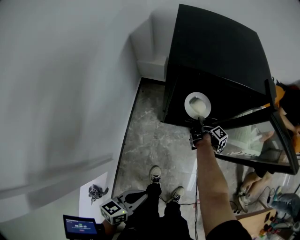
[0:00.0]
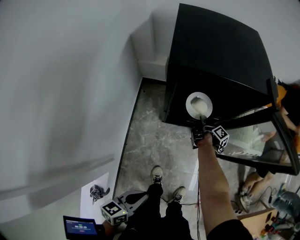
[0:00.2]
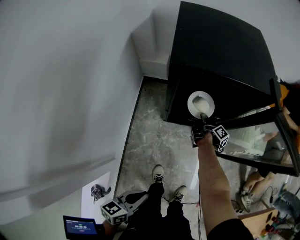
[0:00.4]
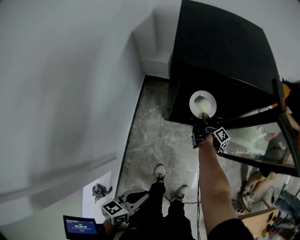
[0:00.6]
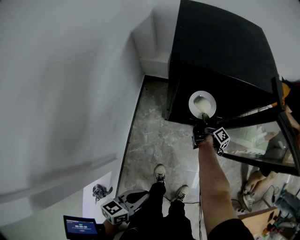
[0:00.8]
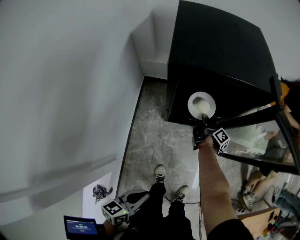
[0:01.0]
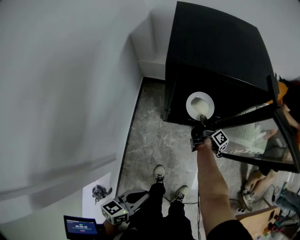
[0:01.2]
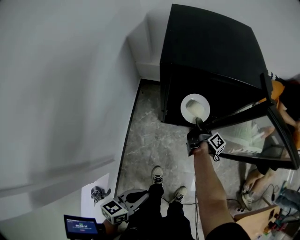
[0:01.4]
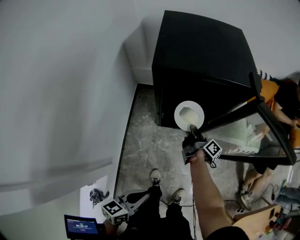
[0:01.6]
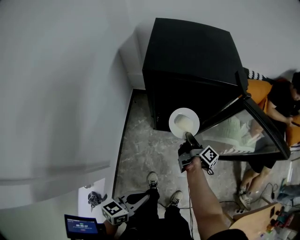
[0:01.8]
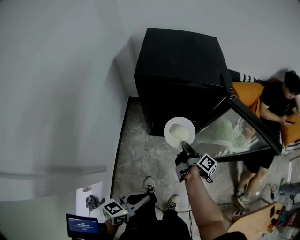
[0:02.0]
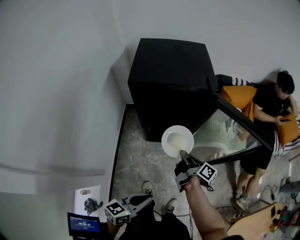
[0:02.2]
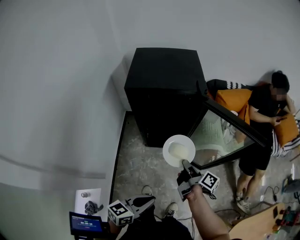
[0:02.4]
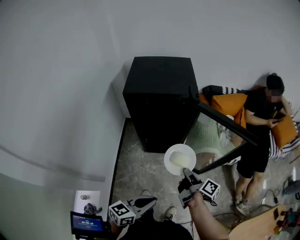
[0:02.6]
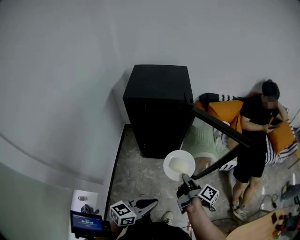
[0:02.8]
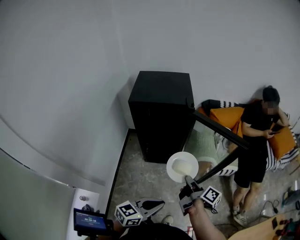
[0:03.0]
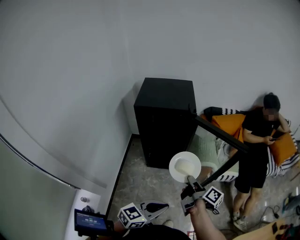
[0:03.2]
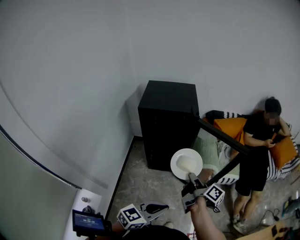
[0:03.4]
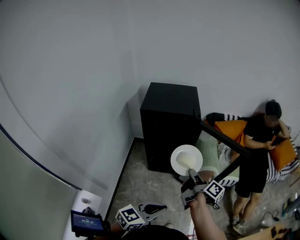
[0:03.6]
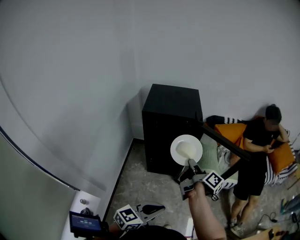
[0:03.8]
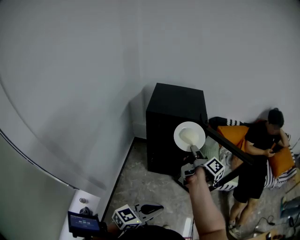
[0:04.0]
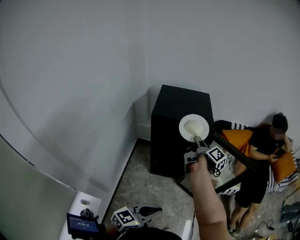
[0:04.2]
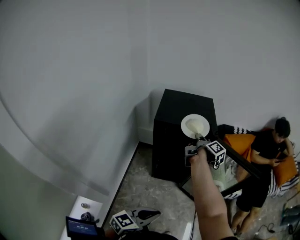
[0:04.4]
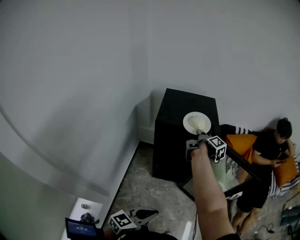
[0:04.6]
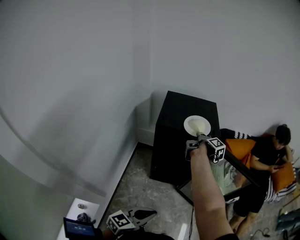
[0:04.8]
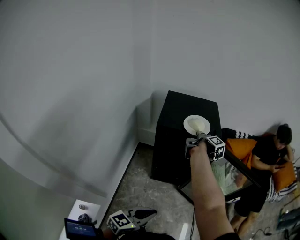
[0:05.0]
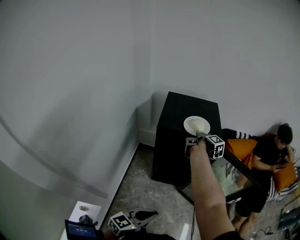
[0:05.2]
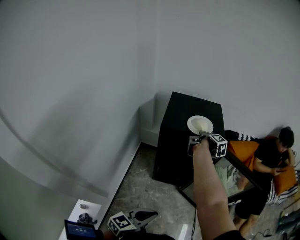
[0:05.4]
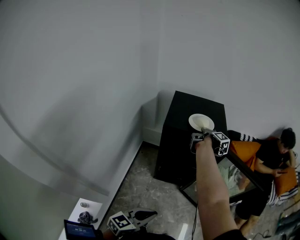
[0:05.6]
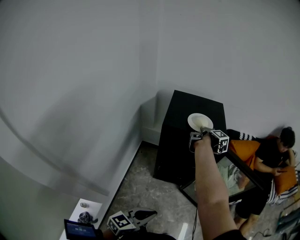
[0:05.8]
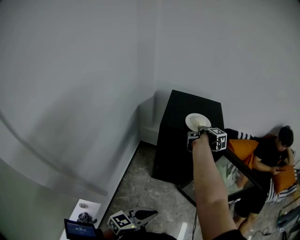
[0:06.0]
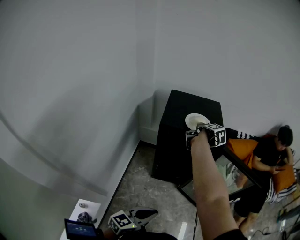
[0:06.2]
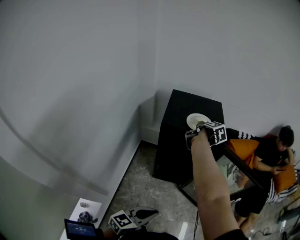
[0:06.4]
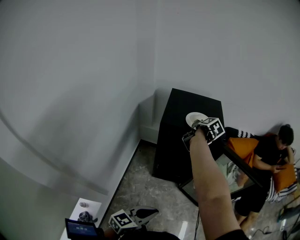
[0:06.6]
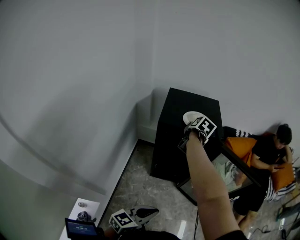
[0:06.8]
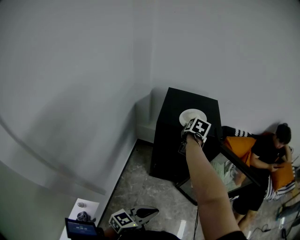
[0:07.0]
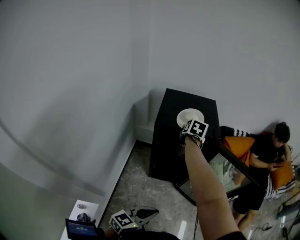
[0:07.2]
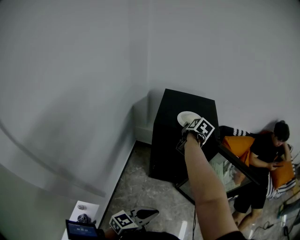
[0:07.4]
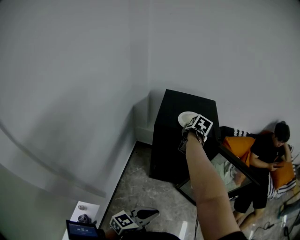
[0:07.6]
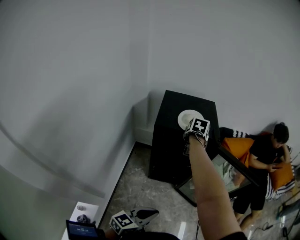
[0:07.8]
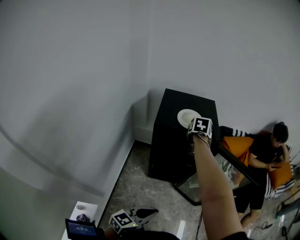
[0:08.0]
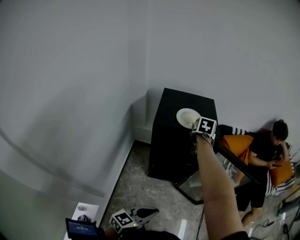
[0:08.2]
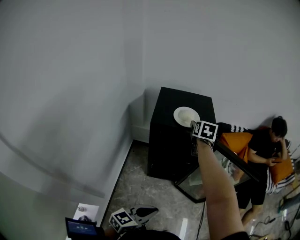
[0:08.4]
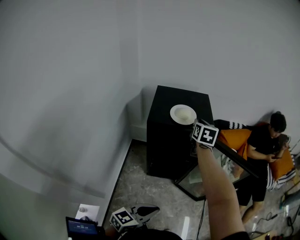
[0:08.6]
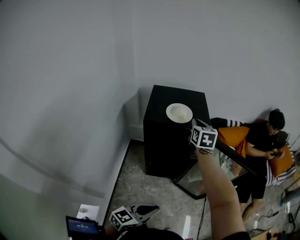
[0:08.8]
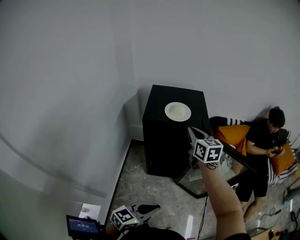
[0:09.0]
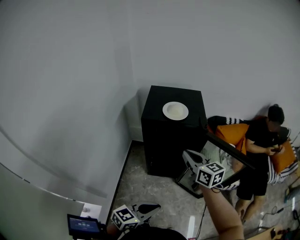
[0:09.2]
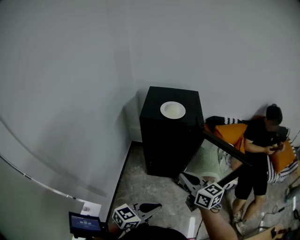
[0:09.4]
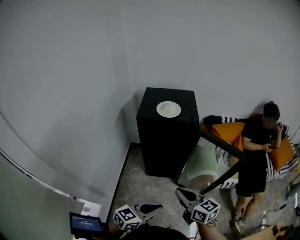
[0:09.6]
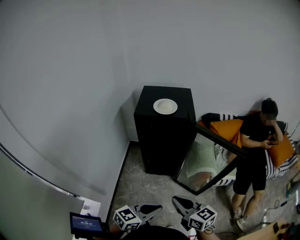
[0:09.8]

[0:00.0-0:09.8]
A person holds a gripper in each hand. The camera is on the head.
0:00.0 to 0:01.4: The grippers move only a little.
0:01.4 to 0:02.8: The left gripper shifts some 25 cm to the right and upward, and rotates about 20 degrees. The right gripper goes roughly 40 cm backward, to the right and upward.
0:02.8 to 0:04.2: The left gripper moves to the left, roughly 5 cm, while the right gripper shifts roughly 30 cm forward, upward and to the left.
0:04.2 to 0:05.6: The right gripper moves forward and to the left, about 15 cm; the left gripper heads to the left, covering about 10 cm.
0:05.6 to 0:07.0: The right gripper rotates around the line of its fingers by some 70 degrees, counterclockwise from behind, and opens its fingers.
0:07.0 to 0:08.4: The right gripper is displaced to the right by roughly 5 cm.
0:08.4 to 0:09.8: The right gripper heads backward, covering approximately 50 cm, rotates about 50 degrees, and closes its fingers, while the left gripper travels to the right by about 10 cm.

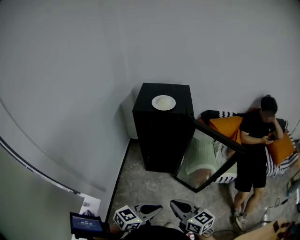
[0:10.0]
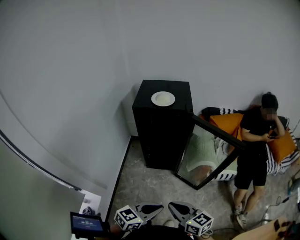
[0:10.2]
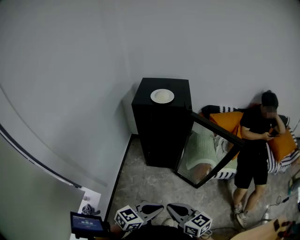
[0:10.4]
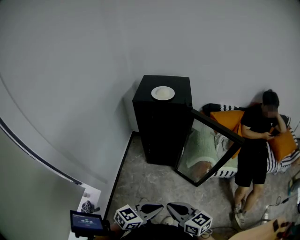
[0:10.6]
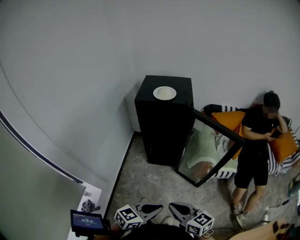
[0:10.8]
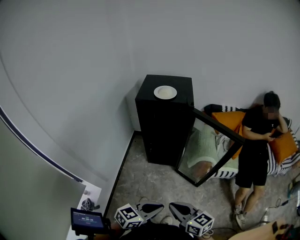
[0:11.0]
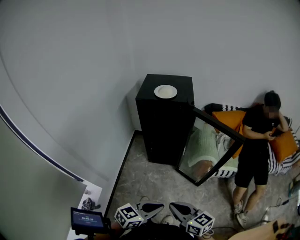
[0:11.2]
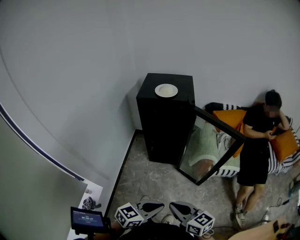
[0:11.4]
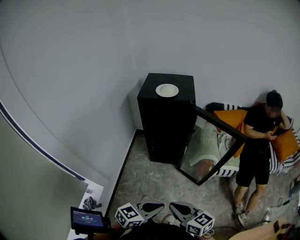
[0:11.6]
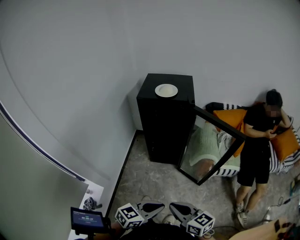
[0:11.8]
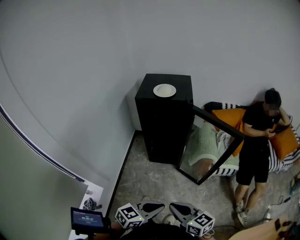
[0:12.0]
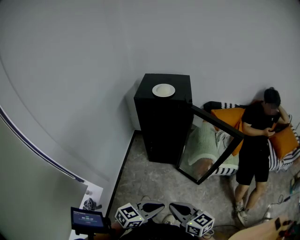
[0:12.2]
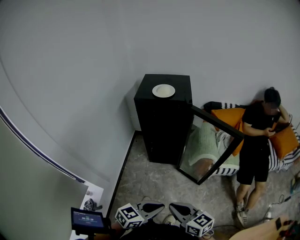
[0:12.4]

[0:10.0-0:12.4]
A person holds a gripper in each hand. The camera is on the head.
0:10.0 to 0:11.2: Both grippers travel together backward, about 5 cm.
0:11.2 to 0:12.4: Both grippers stay about where they are.

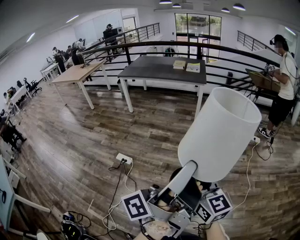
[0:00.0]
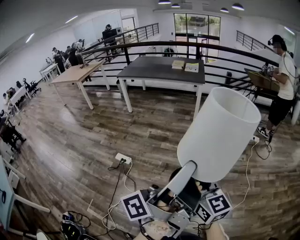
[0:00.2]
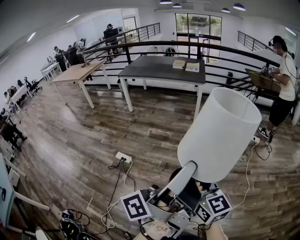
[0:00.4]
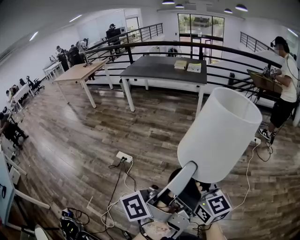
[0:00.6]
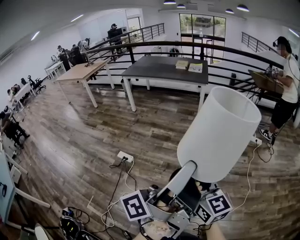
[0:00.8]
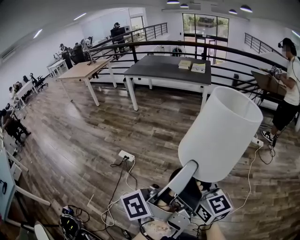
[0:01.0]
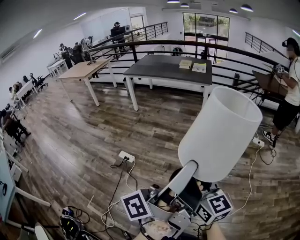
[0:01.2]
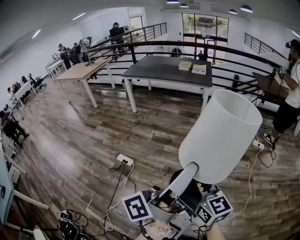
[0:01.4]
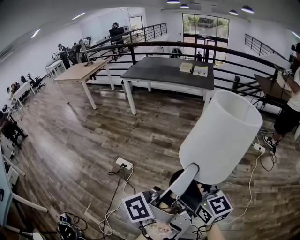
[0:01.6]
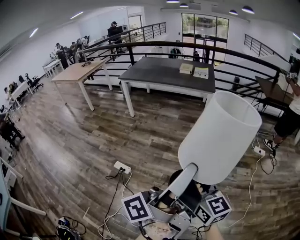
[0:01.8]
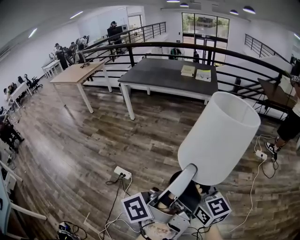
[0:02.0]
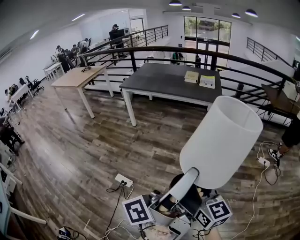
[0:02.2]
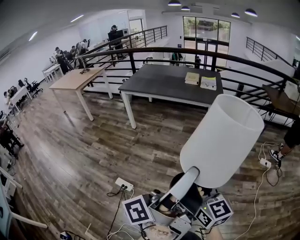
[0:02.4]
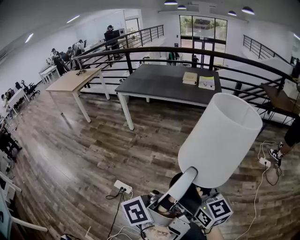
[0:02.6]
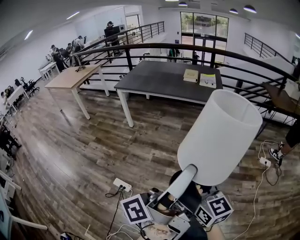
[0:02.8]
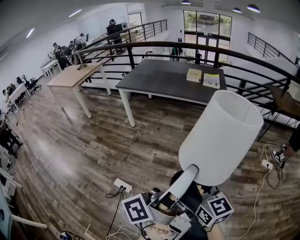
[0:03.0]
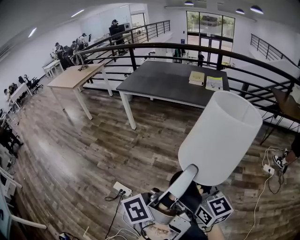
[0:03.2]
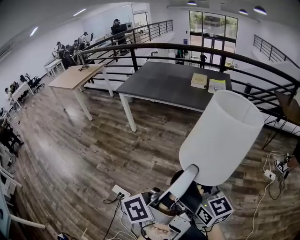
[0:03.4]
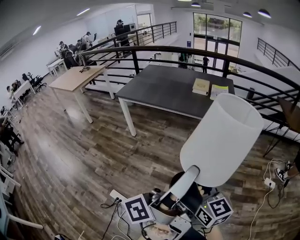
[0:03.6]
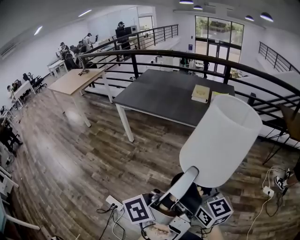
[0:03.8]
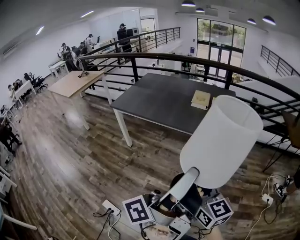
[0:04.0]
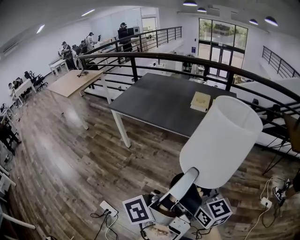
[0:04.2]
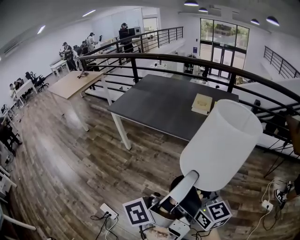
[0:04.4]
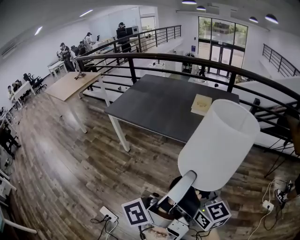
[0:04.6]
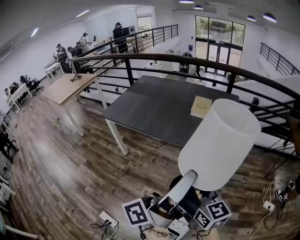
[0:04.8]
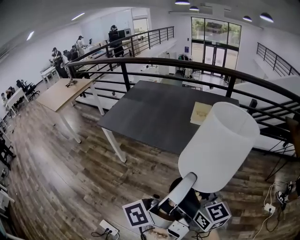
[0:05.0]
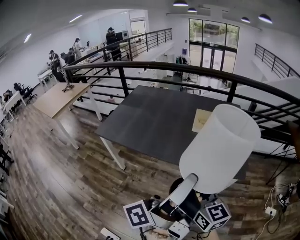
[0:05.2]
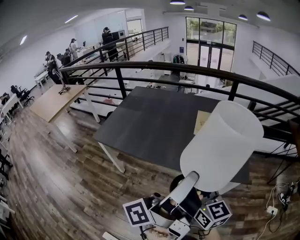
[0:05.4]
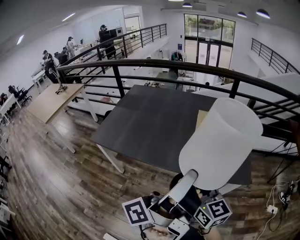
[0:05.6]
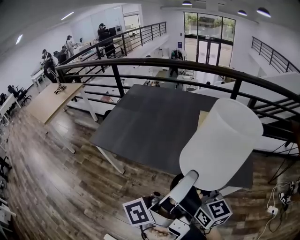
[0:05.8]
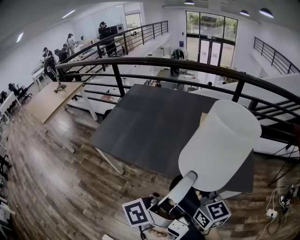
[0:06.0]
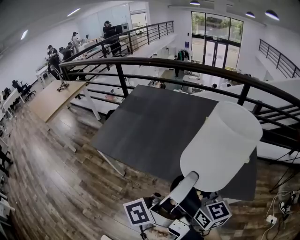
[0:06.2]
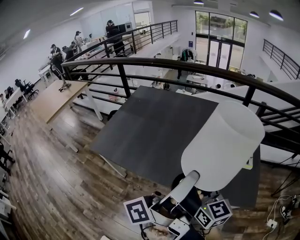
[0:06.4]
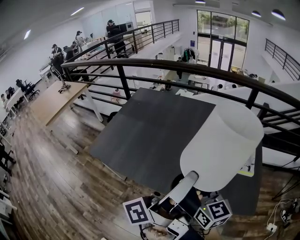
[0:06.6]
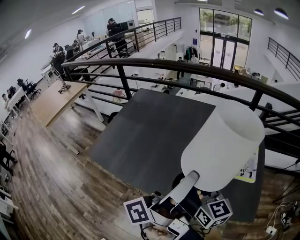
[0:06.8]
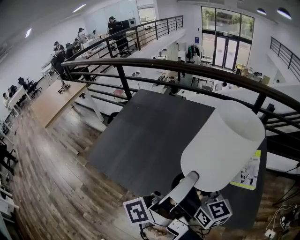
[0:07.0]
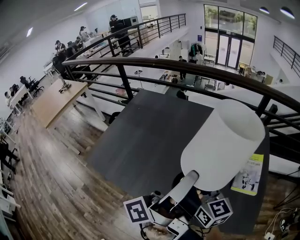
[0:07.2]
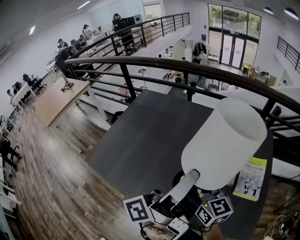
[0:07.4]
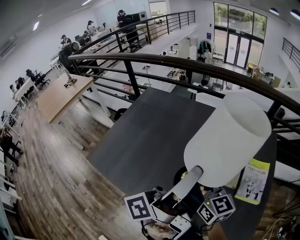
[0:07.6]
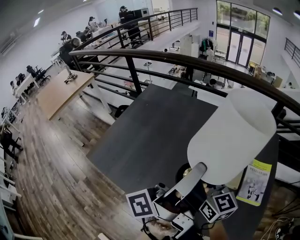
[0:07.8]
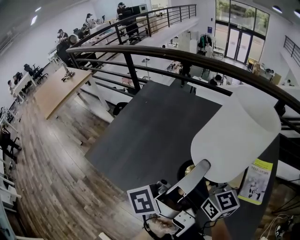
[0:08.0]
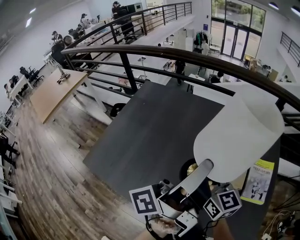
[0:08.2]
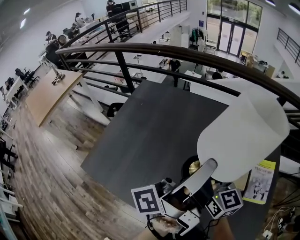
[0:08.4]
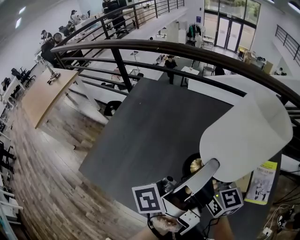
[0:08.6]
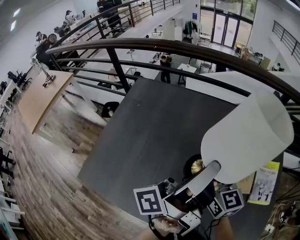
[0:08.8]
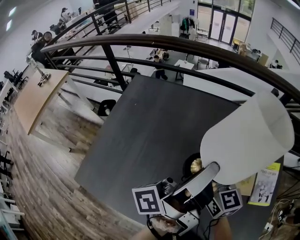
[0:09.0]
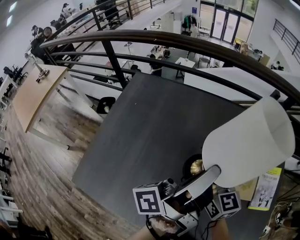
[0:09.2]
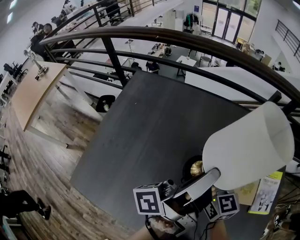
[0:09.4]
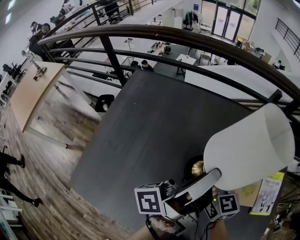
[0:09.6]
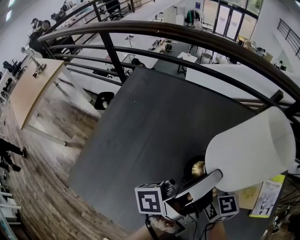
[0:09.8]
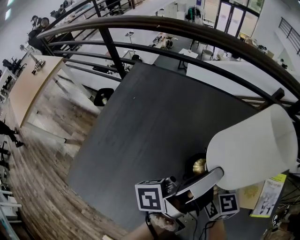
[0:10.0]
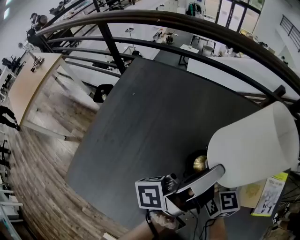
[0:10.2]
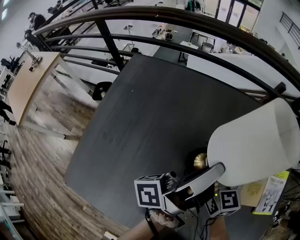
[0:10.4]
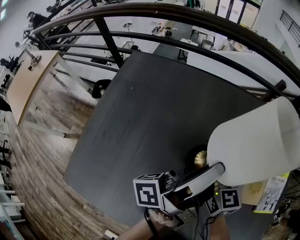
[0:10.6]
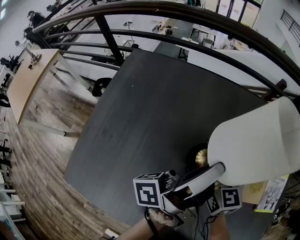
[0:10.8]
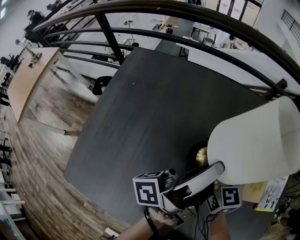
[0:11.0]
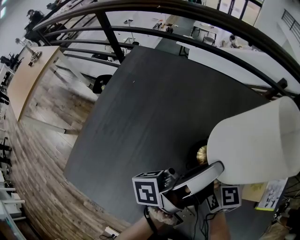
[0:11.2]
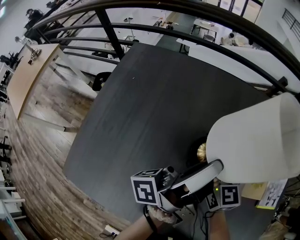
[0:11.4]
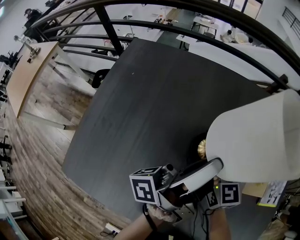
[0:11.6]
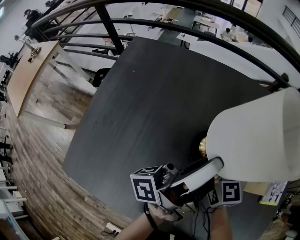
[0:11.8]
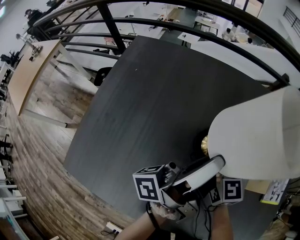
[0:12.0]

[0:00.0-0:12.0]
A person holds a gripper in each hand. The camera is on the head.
0:00.0 to 0:01.6: The right gripper changes place by some 10 cm.
0:01.6 to 0:03.0: The right gripper changes place by approximately 30 cm.
0:03.0 to 0:04.4: The right gripper shifts by roughly 40 cm.
0:04.4 to 0:06.0: The right gripper shifts by roughly 35 cm.
0:06.0 to 0:07.6: The right gripper moves approximately 30 cm.
0:07.6 to 0:09.0: The right gripper ends up approximately 15 cm from where it was.
0:09.0 to 0:10.4: The right gripper shifts approximately 10 cm downward.
